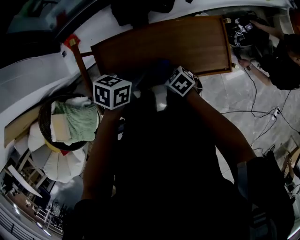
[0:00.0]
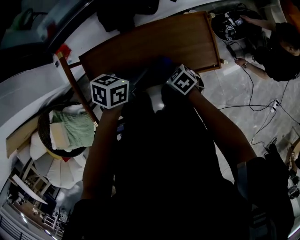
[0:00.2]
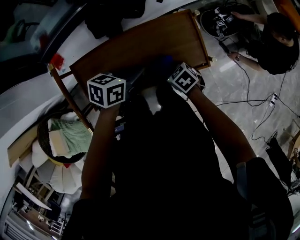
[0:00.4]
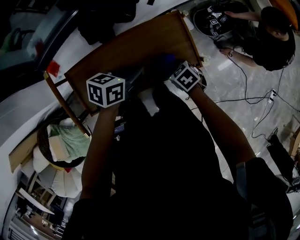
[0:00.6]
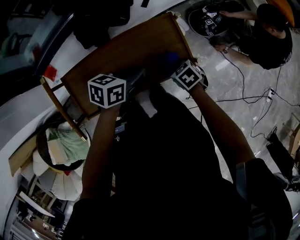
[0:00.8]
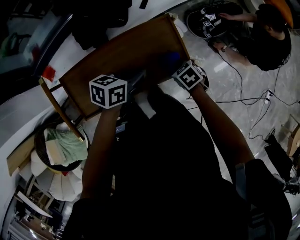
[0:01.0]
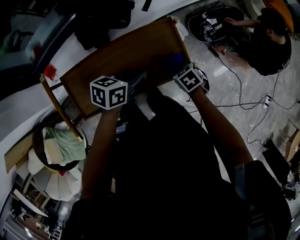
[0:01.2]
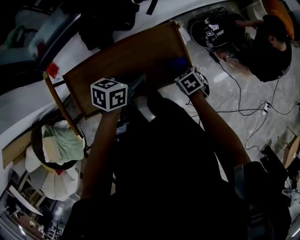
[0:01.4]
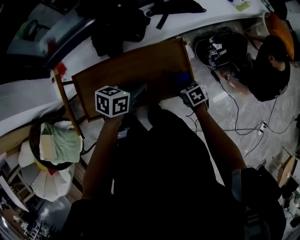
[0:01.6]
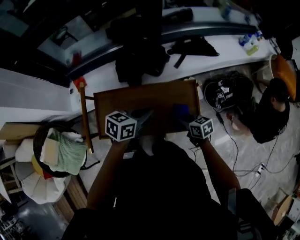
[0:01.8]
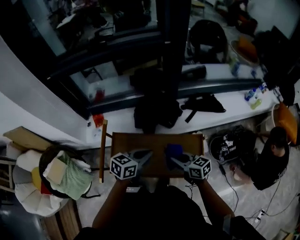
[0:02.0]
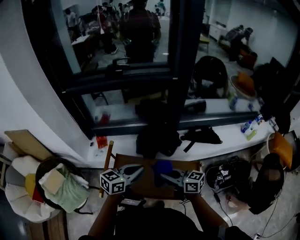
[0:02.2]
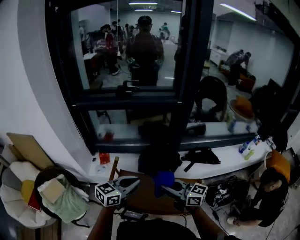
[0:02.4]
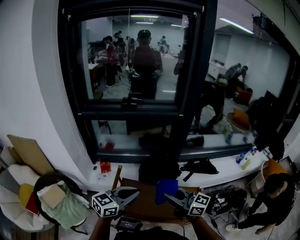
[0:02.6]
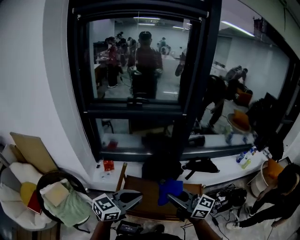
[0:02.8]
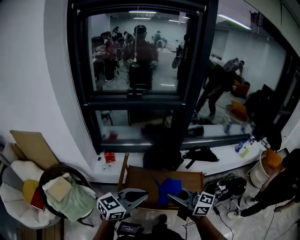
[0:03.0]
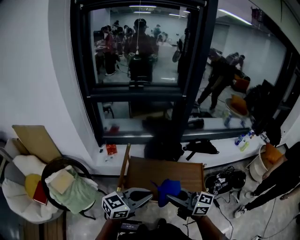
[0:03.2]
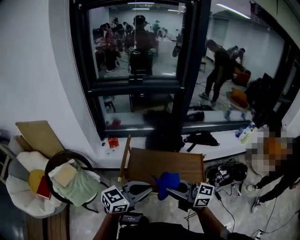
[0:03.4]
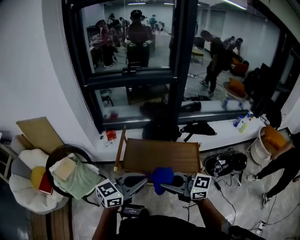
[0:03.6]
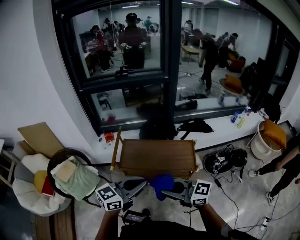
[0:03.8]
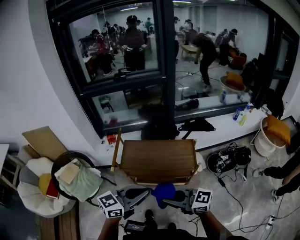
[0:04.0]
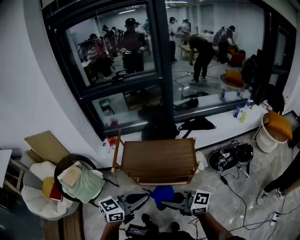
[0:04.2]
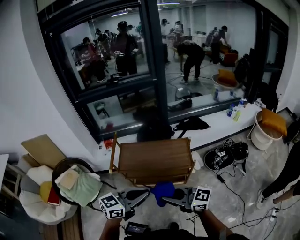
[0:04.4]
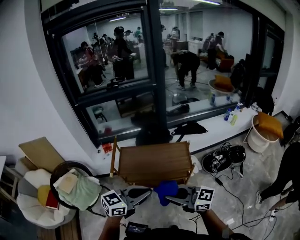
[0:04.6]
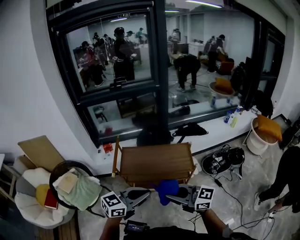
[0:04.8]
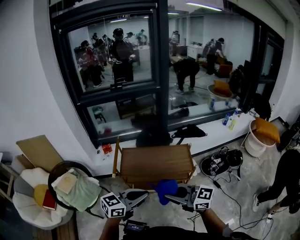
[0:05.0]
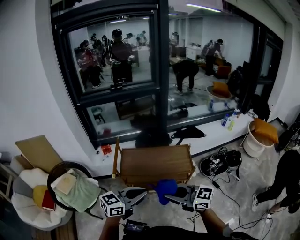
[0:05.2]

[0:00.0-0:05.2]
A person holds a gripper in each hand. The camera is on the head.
0:00.0 to 0:01.8: The right gripper shifts by about 20 cm, and turns by about 30 degrees; the left gripper moves about 15 cm.
0:01.8 to 0:03.4: The right gripper goes approximately 35 cm upward, and points its fingers some 50 degrees further upward. The left gripper changes place by some 40 cm, and turns by some 40 degrees.
0:03.4 to 0:05.2: The right gripper shifts by roughly 15 cm, while the left gripper ends up roughly 15 cm from where it was.

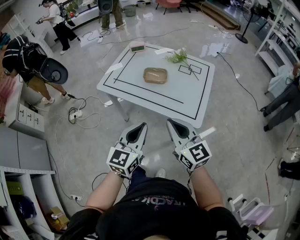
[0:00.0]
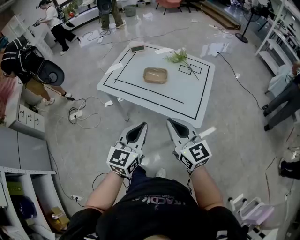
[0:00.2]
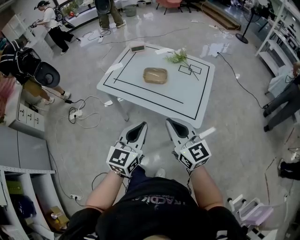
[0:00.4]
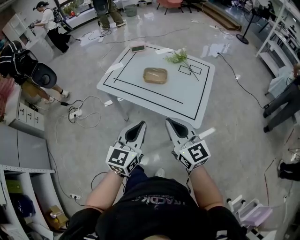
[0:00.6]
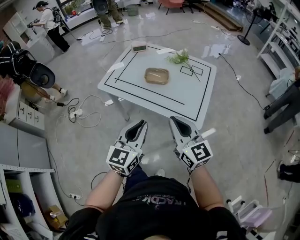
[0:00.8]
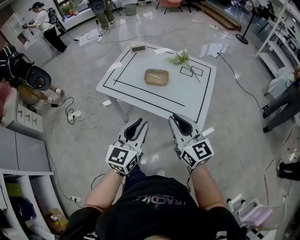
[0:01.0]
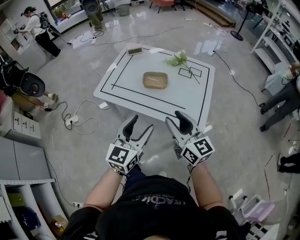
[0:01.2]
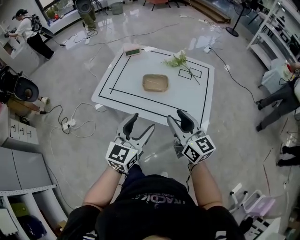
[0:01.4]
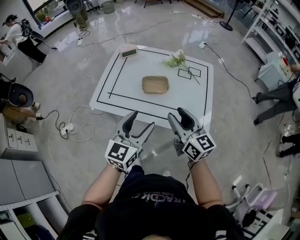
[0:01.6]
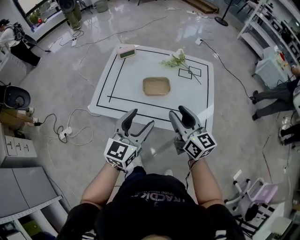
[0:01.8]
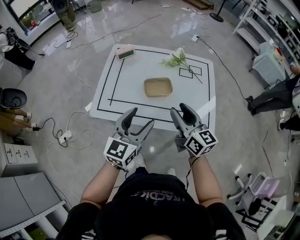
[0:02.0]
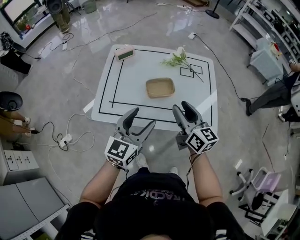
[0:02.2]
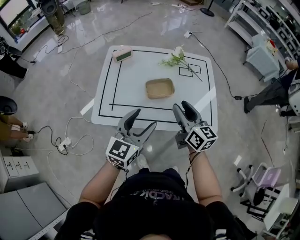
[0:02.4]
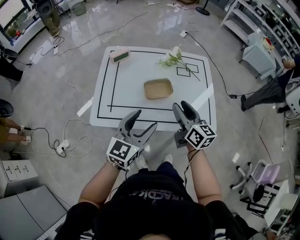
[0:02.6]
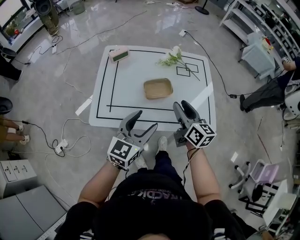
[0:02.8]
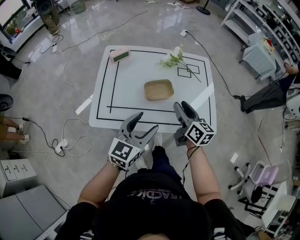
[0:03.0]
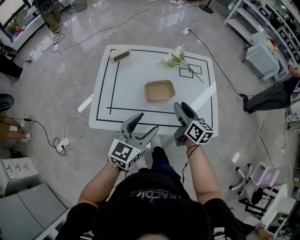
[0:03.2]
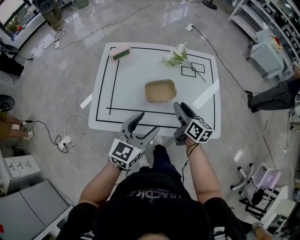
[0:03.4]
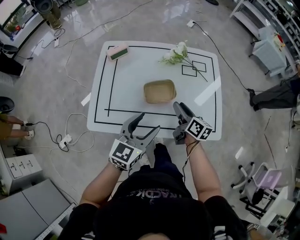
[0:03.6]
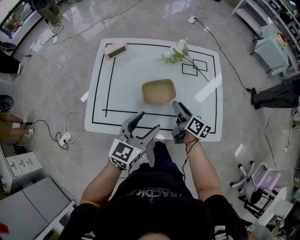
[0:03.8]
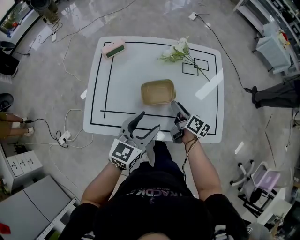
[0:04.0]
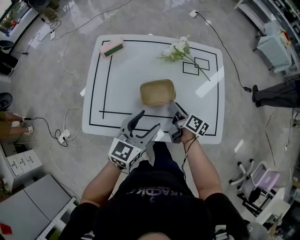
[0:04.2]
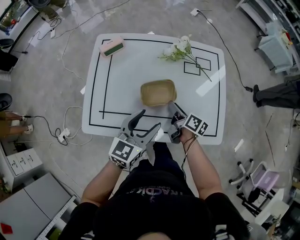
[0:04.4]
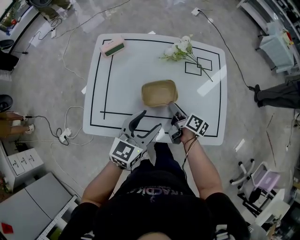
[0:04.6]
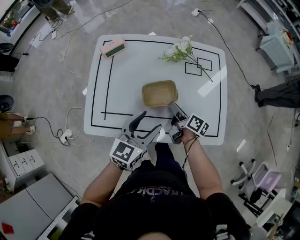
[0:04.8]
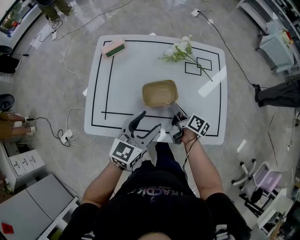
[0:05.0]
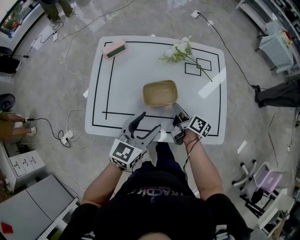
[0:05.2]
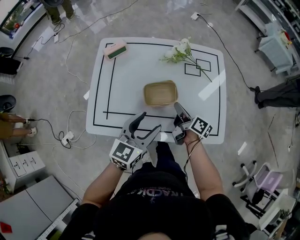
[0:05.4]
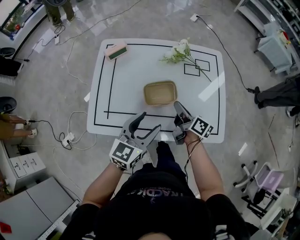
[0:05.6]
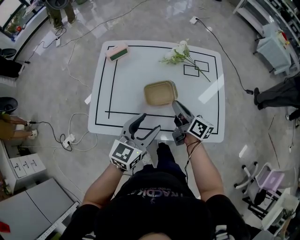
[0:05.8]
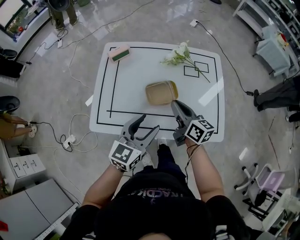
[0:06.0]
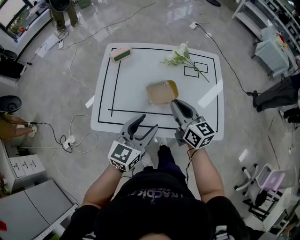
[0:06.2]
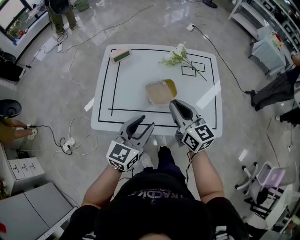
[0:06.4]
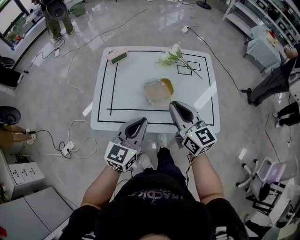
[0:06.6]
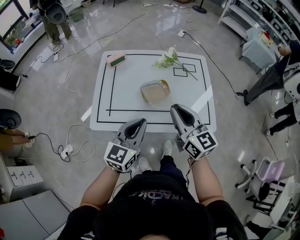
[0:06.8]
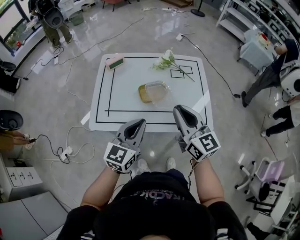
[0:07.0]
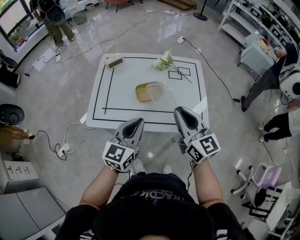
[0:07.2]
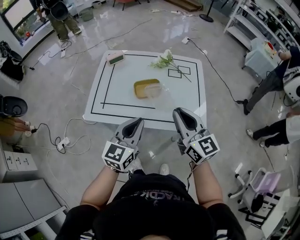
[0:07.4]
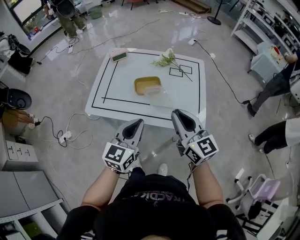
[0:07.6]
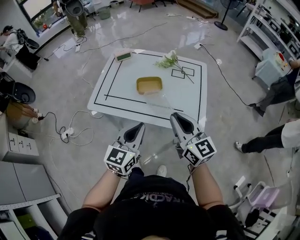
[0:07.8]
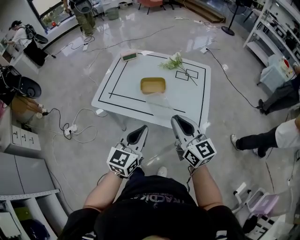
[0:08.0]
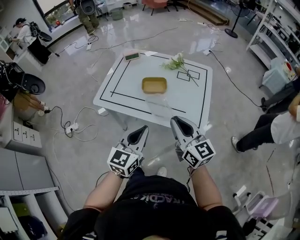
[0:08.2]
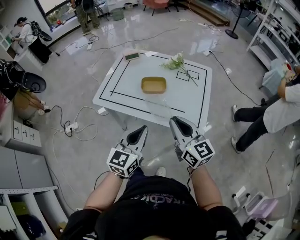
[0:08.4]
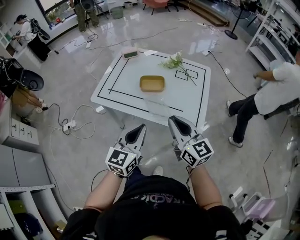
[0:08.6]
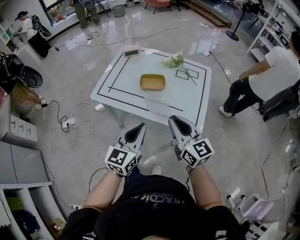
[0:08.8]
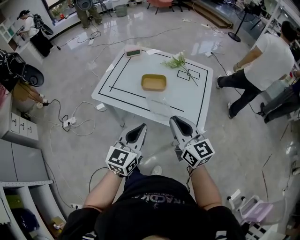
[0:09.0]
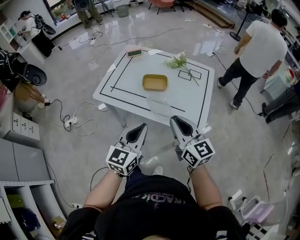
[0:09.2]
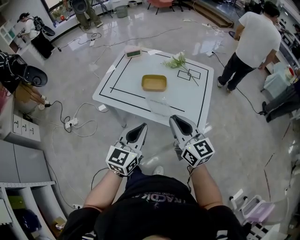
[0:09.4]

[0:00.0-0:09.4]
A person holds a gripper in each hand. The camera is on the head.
0:00.0 to 0:01.6: Both grippers travel together forward, roughly 15 cm. The left gripper opens up. Meanwhile the right gripper opens up.
0:01.6 to 0:03.2: The left gripper travels forward, to the left and downward by about 15 cm. The right gripper is displaced forward and downward by about 15 cm, and swivels about 30 degrees.
0:03.2 to 0:04.8: The left gripper shifts about 10 cm forward and downward; the right gripper moves downward and forward, roughly 15 cm, and changes its angle by about 40 degrees.
0:04.8 to 0:06.2: The left gripper moves backward, approximately 5 cm. Meanwhile the right gripper heads upward, covering about 15 cm, rolls counterclockwise, seen from behind, by roughly 50 degrees, and closes up.
0:06.2 to 0:07.8: The left gripper shifts some 20 cm backward and to the right, and closes up, while the right gripper heads backward, to the right and upward, covering some 25 cm.
0:07.8 to 0:09.4: The grippers make only small movements.

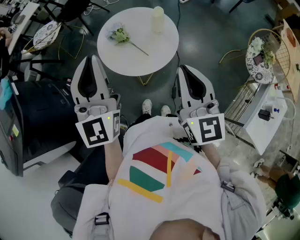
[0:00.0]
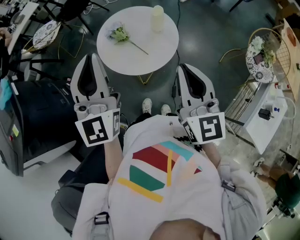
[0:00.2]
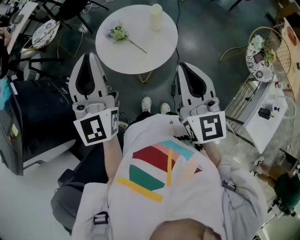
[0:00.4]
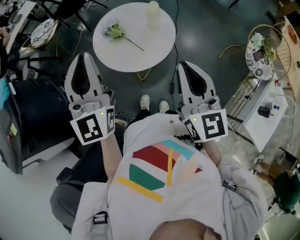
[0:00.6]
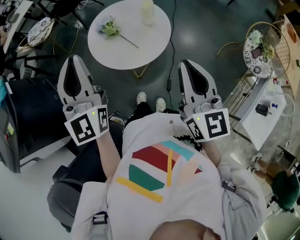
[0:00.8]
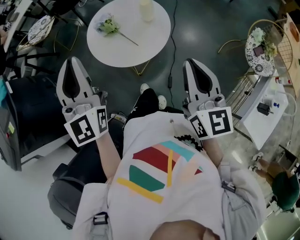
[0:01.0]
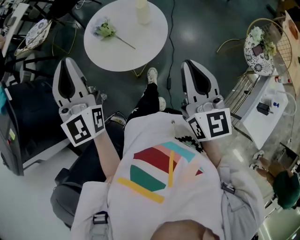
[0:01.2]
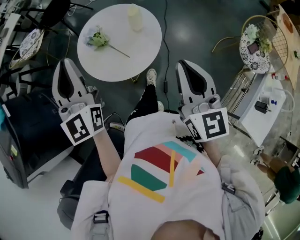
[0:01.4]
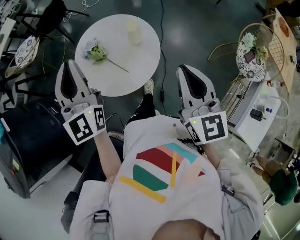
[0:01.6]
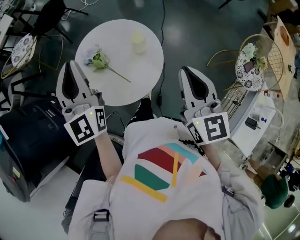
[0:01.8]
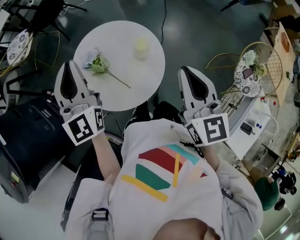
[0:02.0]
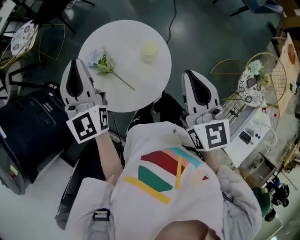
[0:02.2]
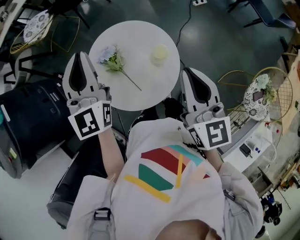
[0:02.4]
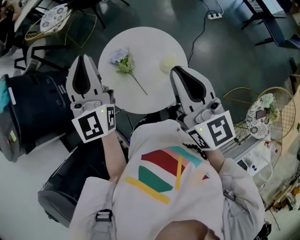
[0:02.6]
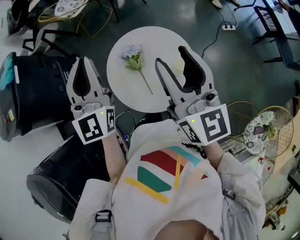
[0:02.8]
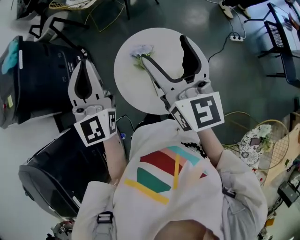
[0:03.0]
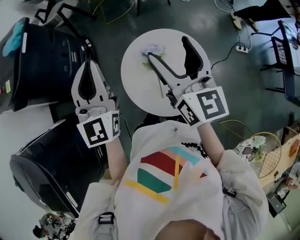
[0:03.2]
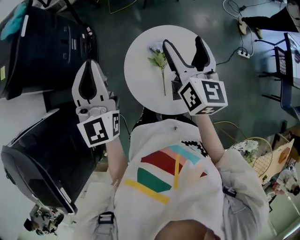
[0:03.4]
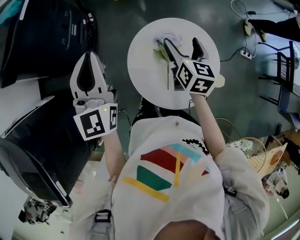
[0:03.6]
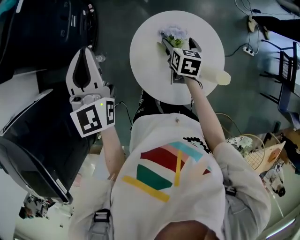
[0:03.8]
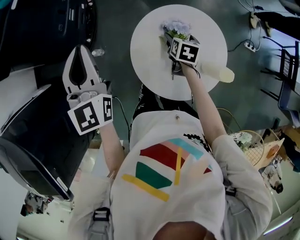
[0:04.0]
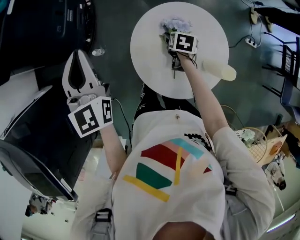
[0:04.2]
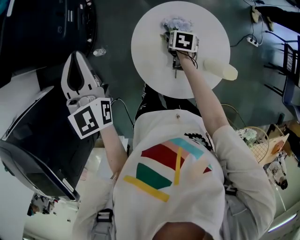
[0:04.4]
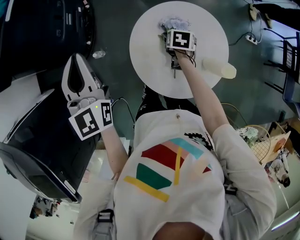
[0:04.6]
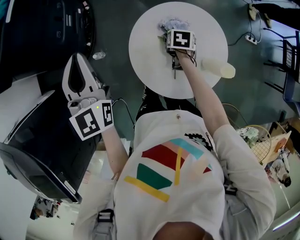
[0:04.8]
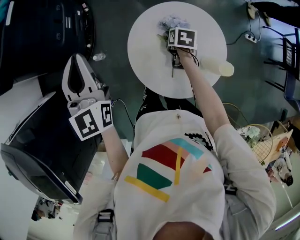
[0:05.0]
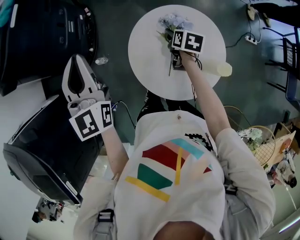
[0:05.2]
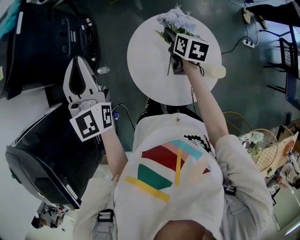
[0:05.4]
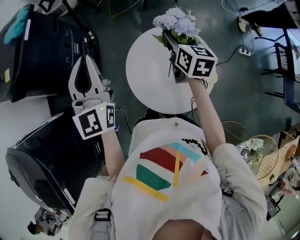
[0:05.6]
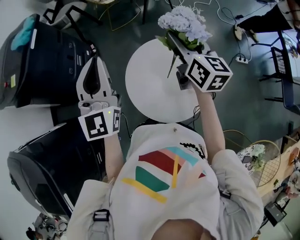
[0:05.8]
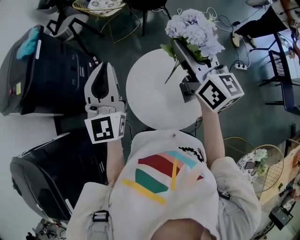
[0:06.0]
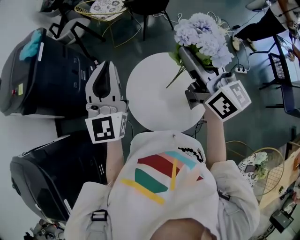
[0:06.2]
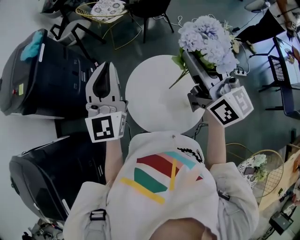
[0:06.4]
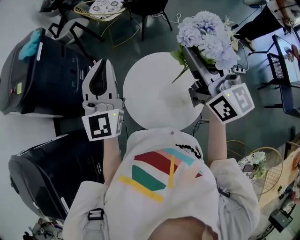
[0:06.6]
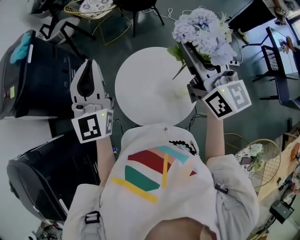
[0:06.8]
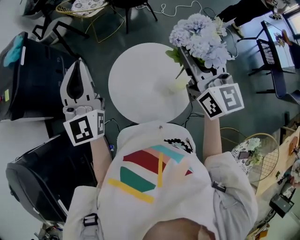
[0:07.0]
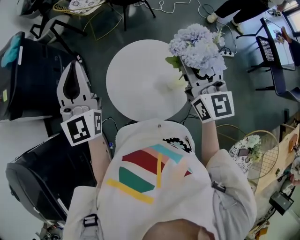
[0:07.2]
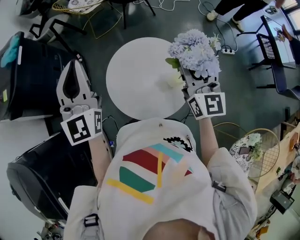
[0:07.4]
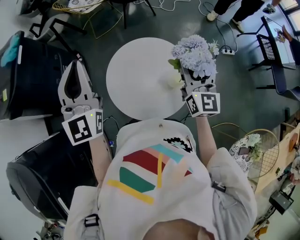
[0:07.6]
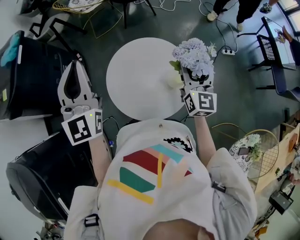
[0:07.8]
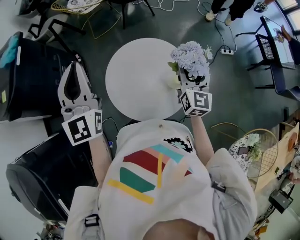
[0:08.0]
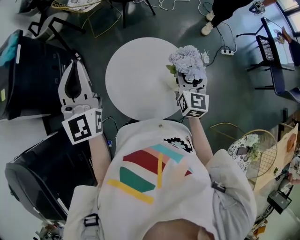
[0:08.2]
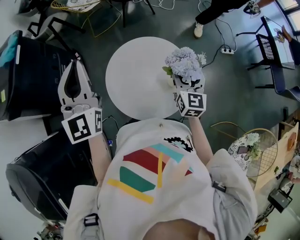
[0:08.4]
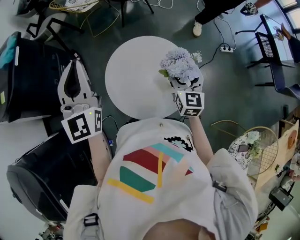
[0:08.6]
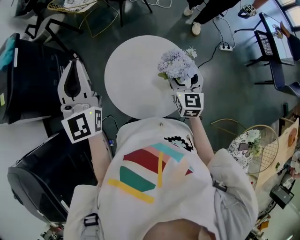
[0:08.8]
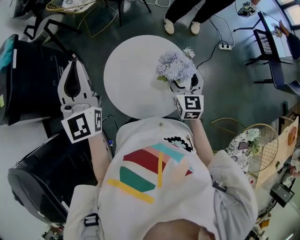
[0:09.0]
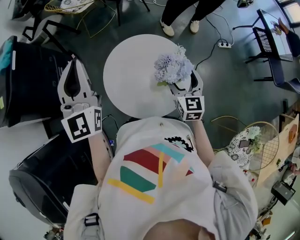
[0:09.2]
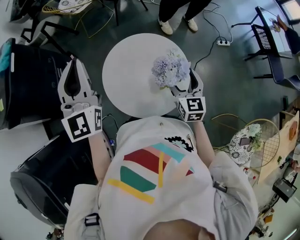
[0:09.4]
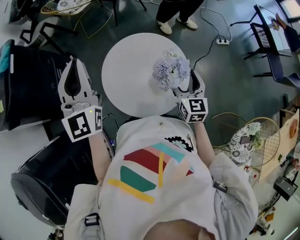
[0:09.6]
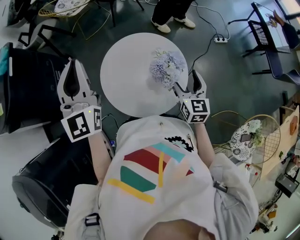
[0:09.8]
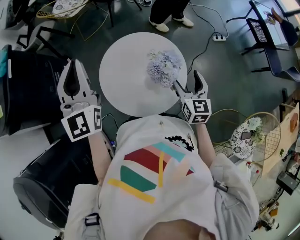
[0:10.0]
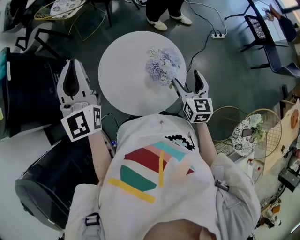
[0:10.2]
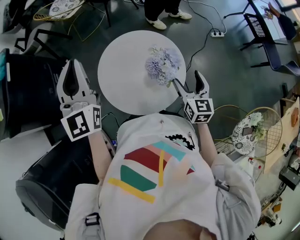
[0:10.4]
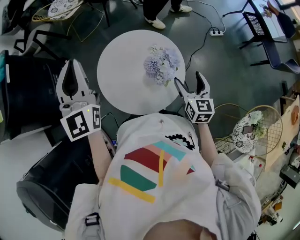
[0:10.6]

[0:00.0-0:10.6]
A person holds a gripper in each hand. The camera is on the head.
0:00.0 to 0:01.6: The right gripper is displaced forward and to the right by roughly 15 cm, while the left gripper goes about 15 cm forward.
0:01.6 to 0:03.0: The right gripper shifts by some 30 cm, changes its angle by roughly 40 degrees, and opens up; the left gripper moves about 5 cm downward and comes back, and turns by some 30 degrees.
0:03.0 to 0:04.6: The left gripper goes about 20 cm to the left and downward, and turns by about 20 degrees; the right gripper is displaced downward by about 40 cm, and tilts its fingers roughly 70 degrees downward.
0:04.6 to 0:06.0: The left gripper shifts about 20 cm to the right and upward, and changes its angle by about 30 degrees. The right gripper moves upward, roughly 40 cm, tips its fingers upward by approximately 70 degrees, and closes its fingers.
0:06.0 to 0:07.6: The right gripper travels to the right, downward and backward by roughly 15 cm, and rotates approximately 30 degrees.
0:07.6 to 0:09.0: The right gripper goes about 10 cm downward, and rotates about 20 degrees.
0:09.0 to 0:10.6: The right gripper heads backward and to the right, covering roughly 10 cm.
